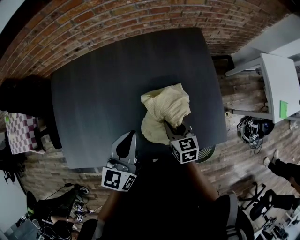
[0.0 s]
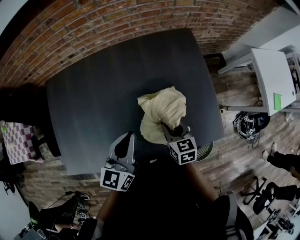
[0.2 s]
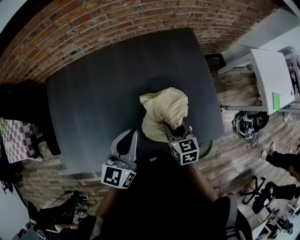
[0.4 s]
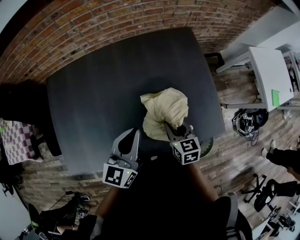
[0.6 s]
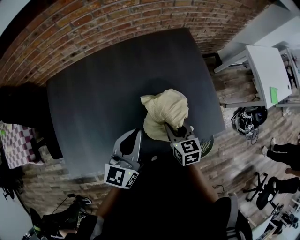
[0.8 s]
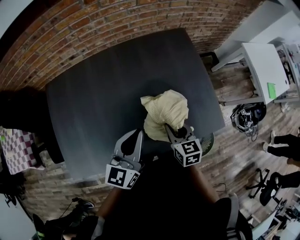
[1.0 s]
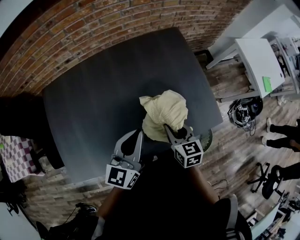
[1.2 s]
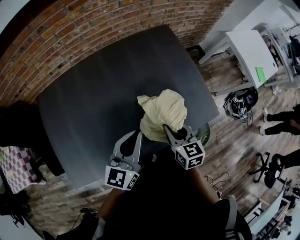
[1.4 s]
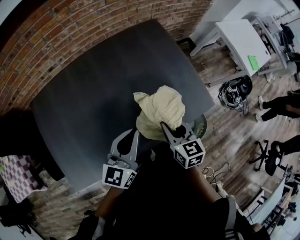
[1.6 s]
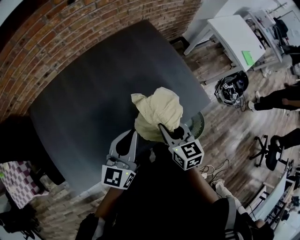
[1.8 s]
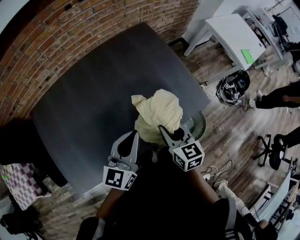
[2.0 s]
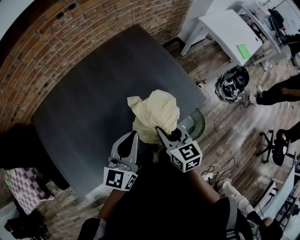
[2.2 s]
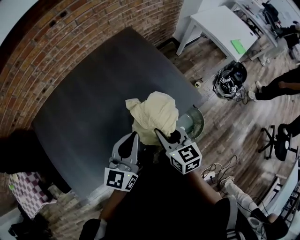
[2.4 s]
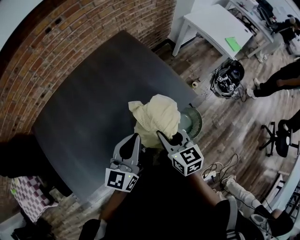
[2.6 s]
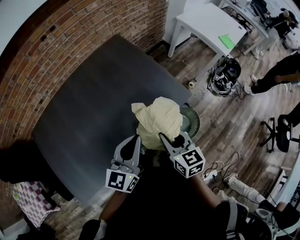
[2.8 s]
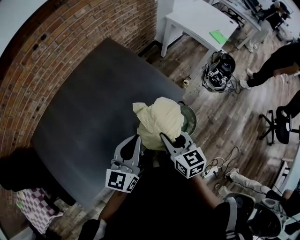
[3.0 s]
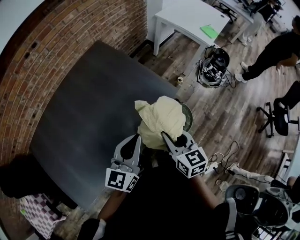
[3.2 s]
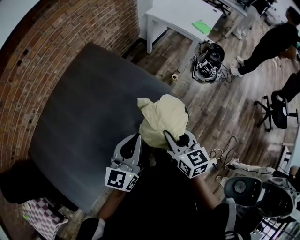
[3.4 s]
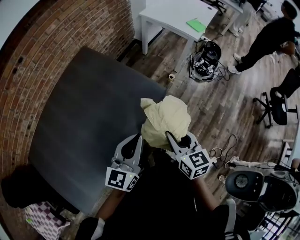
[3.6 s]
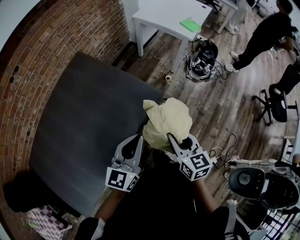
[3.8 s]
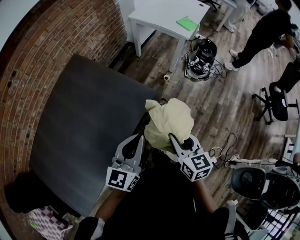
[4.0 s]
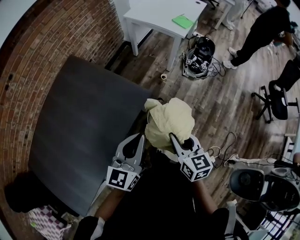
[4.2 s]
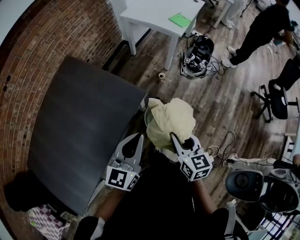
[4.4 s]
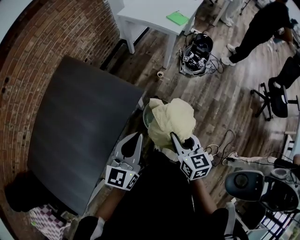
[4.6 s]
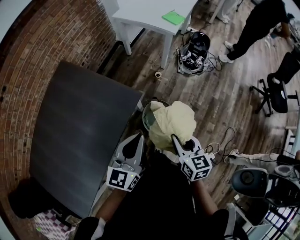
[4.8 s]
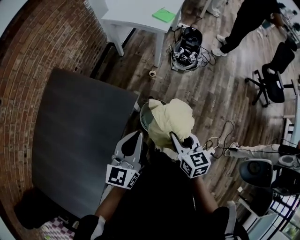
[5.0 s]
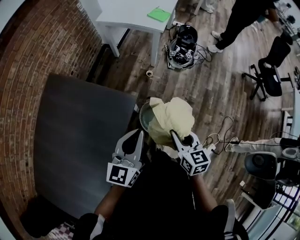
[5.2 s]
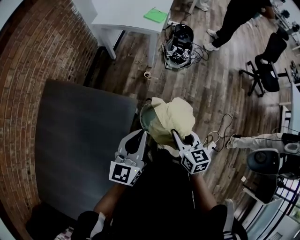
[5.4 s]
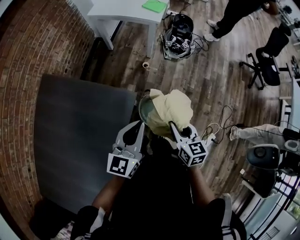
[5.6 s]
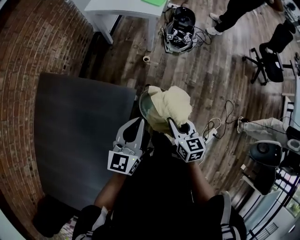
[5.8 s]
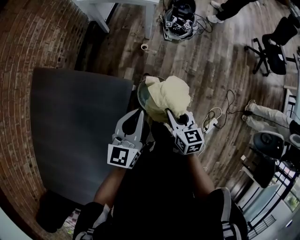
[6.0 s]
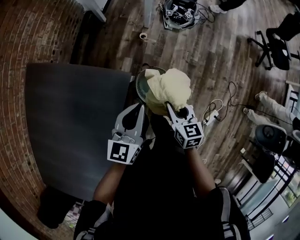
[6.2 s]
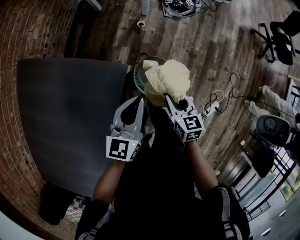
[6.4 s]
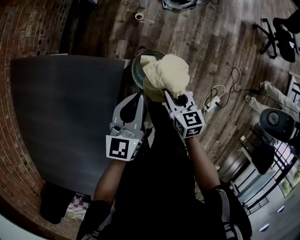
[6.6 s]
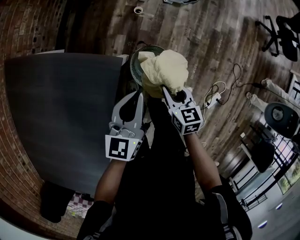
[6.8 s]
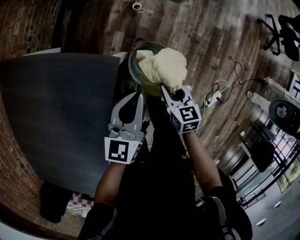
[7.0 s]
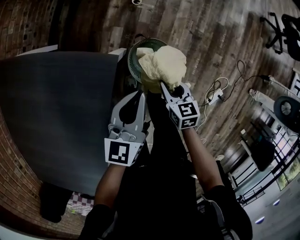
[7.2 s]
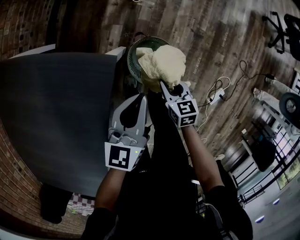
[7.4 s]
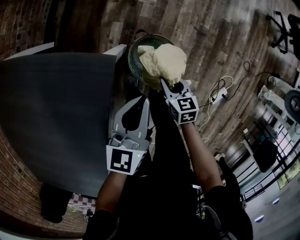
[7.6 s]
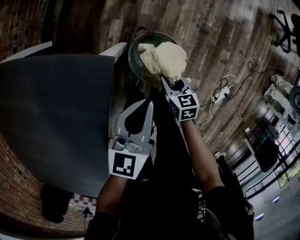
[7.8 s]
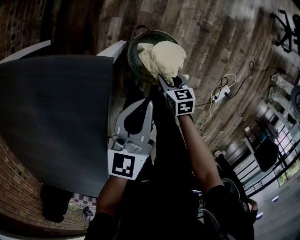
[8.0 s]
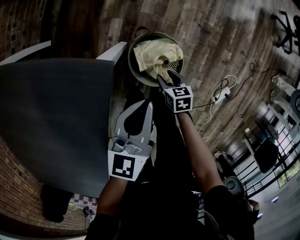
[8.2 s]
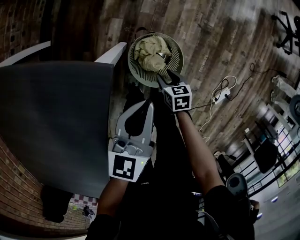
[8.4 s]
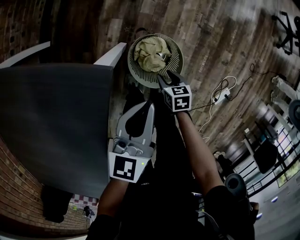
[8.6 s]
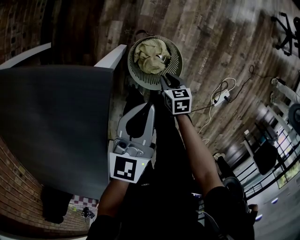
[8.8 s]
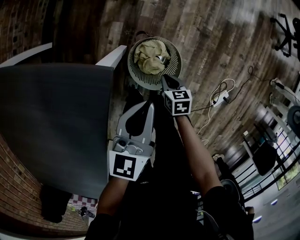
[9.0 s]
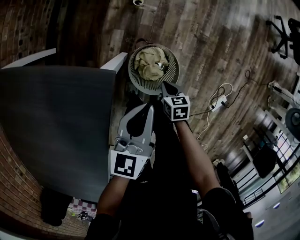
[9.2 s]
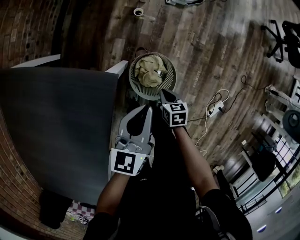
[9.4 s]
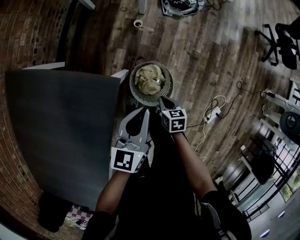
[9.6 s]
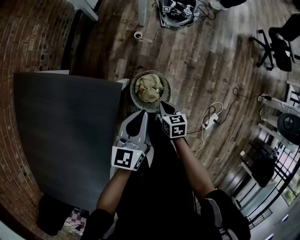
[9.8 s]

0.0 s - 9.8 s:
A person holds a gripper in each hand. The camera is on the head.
0.0 s - 1.4 s: The right gripper travels backward and upward by approximately 10 cm. The left gripper travels backward by about 5 cm, and changes its angle by some 20 degrees.
1.4 s - 2.8 s: The left gripper heads to the right, covering about 15 cm, while the right gripper goes roughly 15 cm to the right and backward.
2.8 s - 4.2 s: Both grippers move to the right, some 25 cm. The right gripper changes its angle by approximately 20 degrees.
4.2 s - 5.6 s: The left gripper moves forward, approximately 10 cm. The right gripper moves forward and downward, some 10 cm.
5.6 s - 7.0 s: Both grippers travel together downward, some 20 cm.
7.0 s - 8.4 s: The left gripper heads downward, covering some 10 cm; the right gripper shifts some 25 cm downward.
8.4 s - 9.8 s: The left gripper heads upward, covering about 10 cm; the right gripper goes about 20 cm upward, and closes.

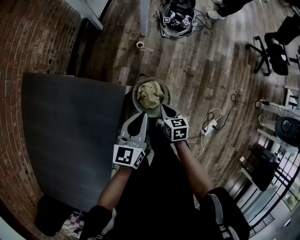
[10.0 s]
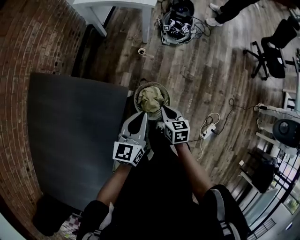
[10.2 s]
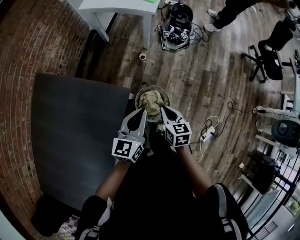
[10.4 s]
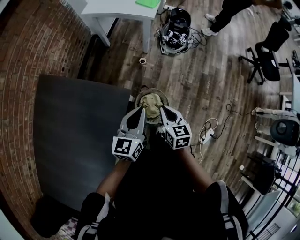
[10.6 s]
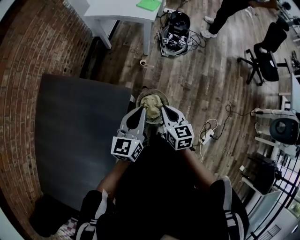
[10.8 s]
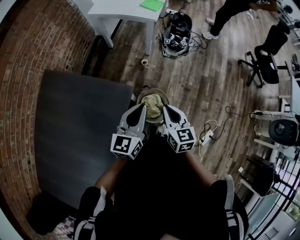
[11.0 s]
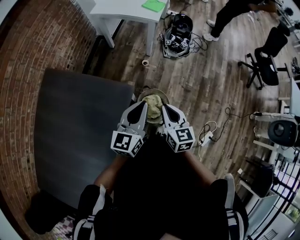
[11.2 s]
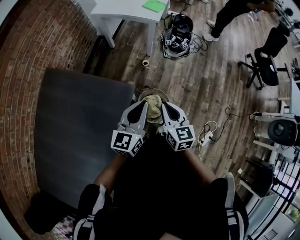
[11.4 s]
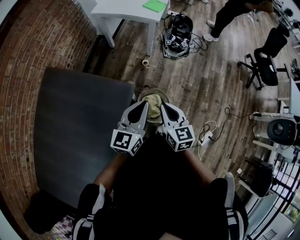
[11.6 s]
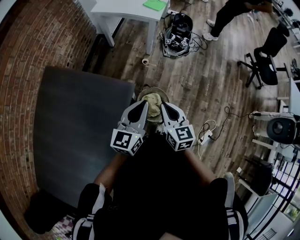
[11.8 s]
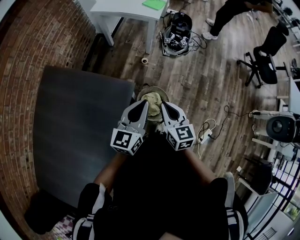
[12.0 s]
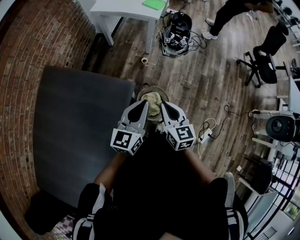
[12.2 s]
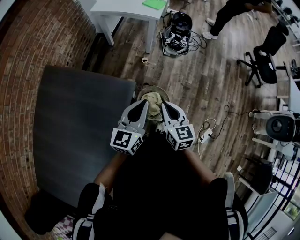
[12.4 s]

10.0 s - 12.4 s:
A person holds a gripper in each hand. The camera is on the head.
10.0 s - 11.2 s: The left gripper is displaced upward by approximately 15 cm; the right gripper is displaced upward by roughly 25 cm, and turns by some 30 degrees.
11.2 s - 12.4 s: There are only small adjustments of the grippers.

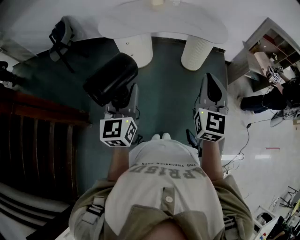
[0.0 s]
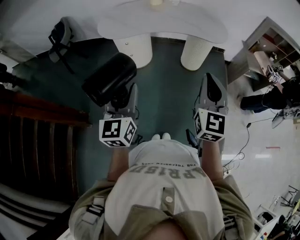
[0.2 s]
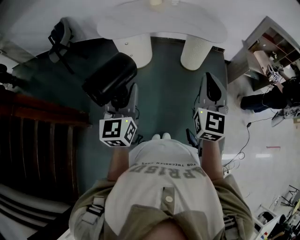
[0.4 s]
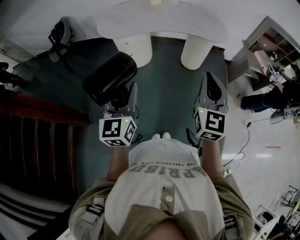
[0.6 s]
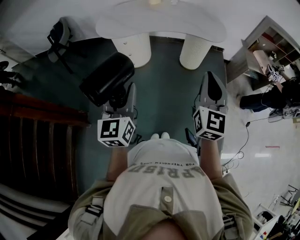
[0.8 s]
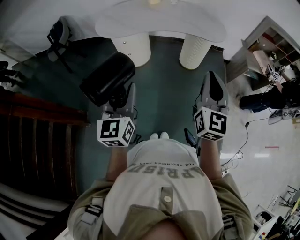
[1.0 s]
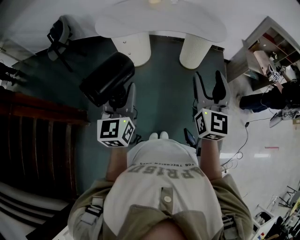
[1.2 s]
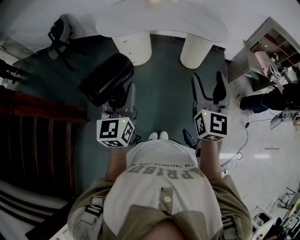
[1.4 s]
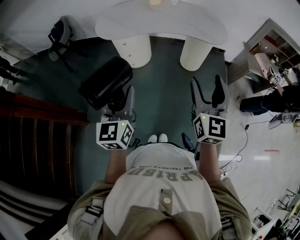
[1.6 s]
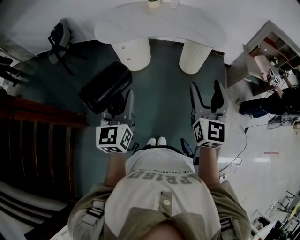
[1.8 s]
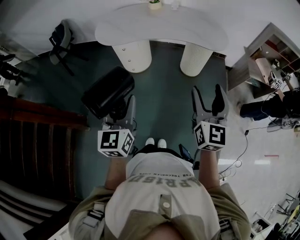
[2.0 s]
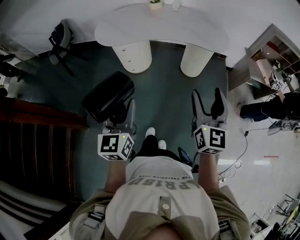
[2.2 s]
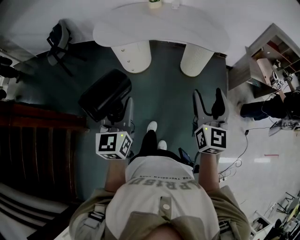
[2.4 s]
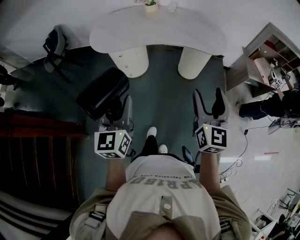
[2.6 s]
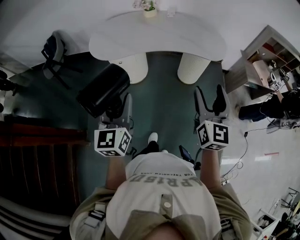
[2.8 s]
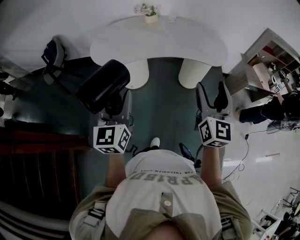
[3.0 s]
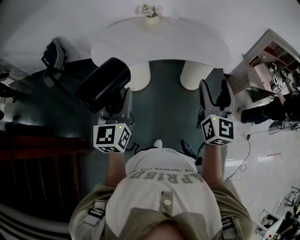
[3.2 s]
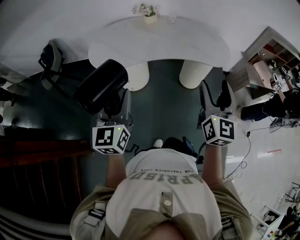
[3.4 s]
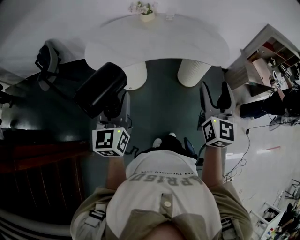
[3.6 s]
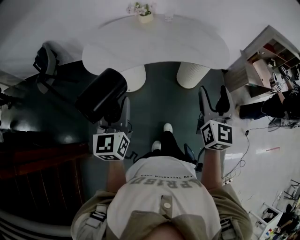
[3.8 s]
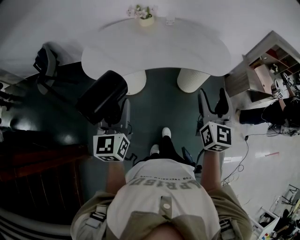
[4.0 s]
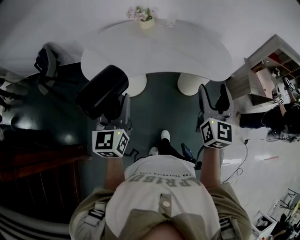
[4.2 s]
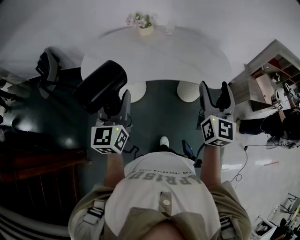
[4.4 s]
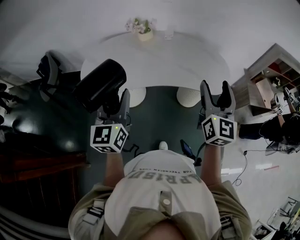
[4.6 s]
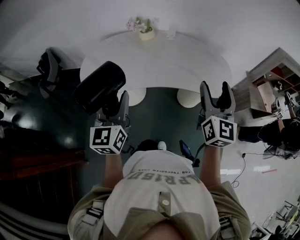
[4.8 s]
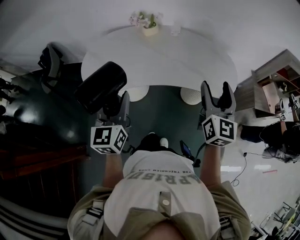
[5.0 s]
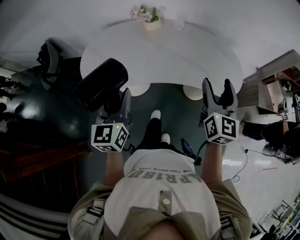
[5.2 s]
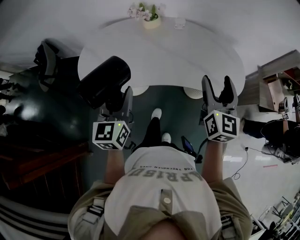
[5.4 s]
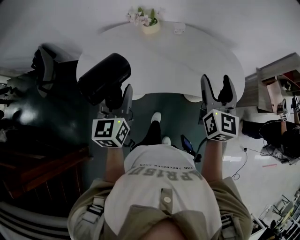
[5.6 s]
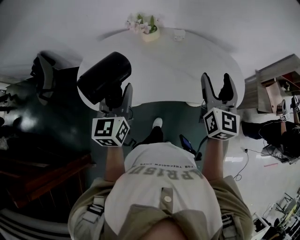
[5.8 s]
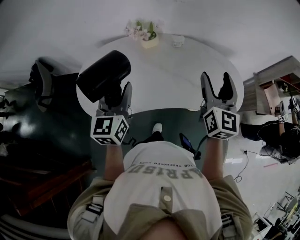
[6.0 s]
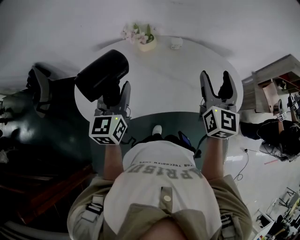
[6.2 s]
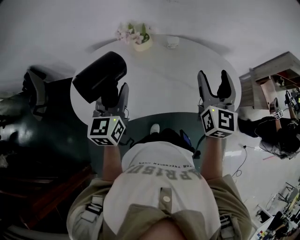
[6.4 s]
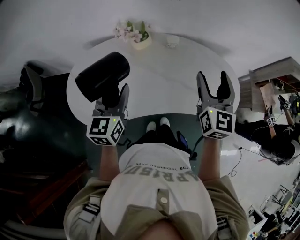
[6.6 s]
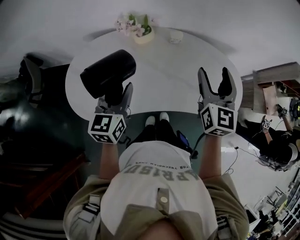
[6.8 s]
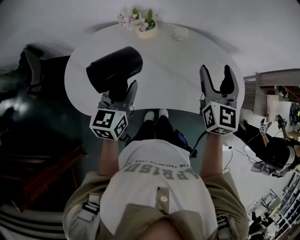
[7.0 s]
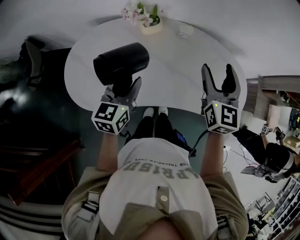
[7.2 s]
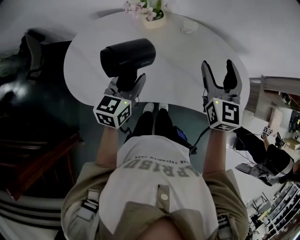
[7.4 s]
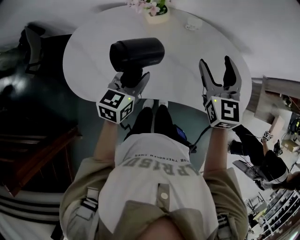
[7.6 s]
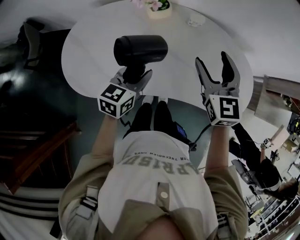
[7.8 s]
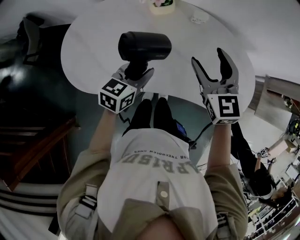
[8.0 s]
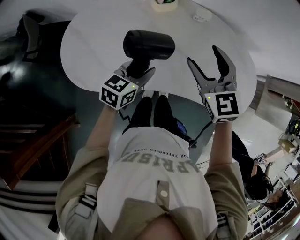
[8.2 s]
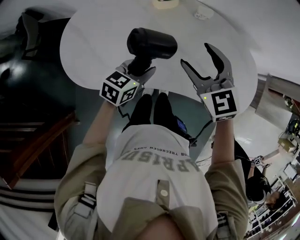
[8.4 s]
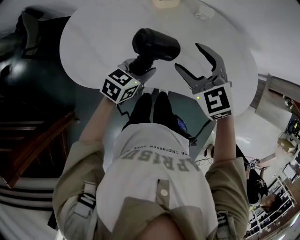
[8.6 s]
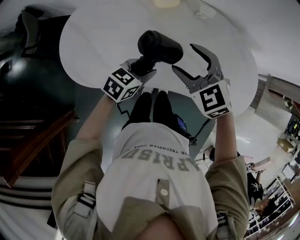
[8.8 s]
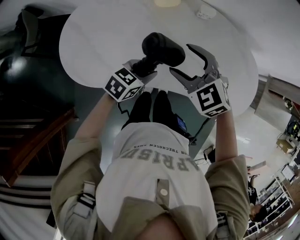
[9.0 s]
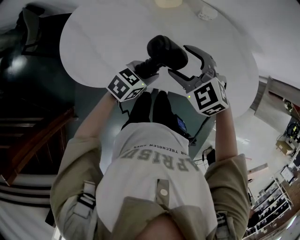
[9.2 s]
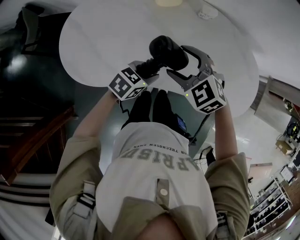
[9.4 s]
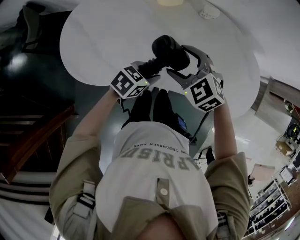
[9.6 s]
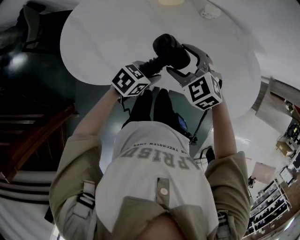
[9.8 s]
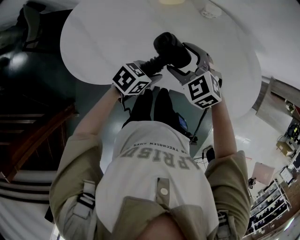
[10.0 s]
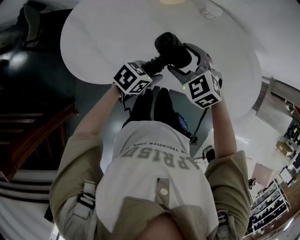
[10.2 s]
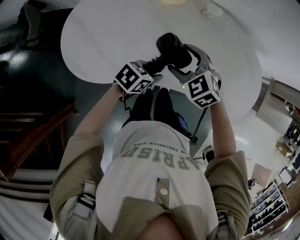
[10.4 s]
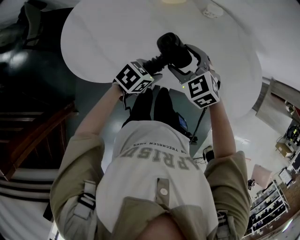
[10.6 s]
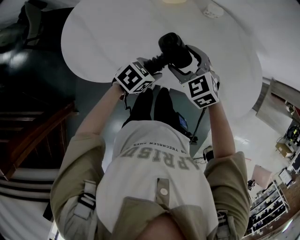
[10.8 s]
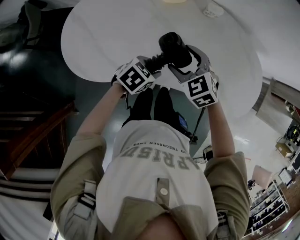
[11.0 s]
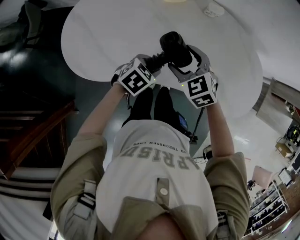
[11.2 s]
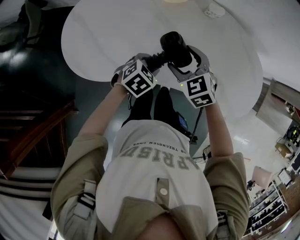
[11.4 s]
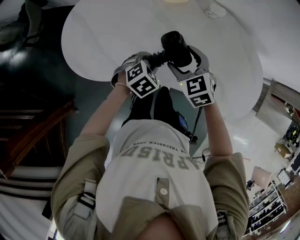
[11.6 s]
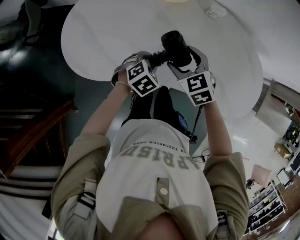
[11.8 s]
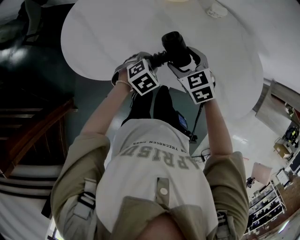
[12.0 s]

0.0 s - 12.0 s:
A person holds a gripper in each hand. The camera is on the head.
0.0 s - 1.6 s: The right gripper opens its fingers.
1.6 s - 3.0 s: The two grippers go about 15 cm forward.
3.0 s - 4.4 s: Both grippers travel together forward, about 20 cm.
4.4 s - 6.0 s: The two grippers go some 25 cm forward.
6.0 s - 7.6 s: The left gripper shifts some 15 cm downward and forward, and swivels about 30 degrees; the right gripper goes roughly 15 cm forward, downward and to the left, and changes its angle by approximately 30 degrees.
7.6 s - 9.0 s: The right gripper is displaced to the left, downward and backward by roughly 15 cm, and turns by roughly 50 degrees. Meanwhile the left gripper goes about 10 cm downward, and changes its angle by about 30 degrees.
9.0 s - 10.4 s: The right gripper is displaced downward by roughly 5 cm.
10.4 s - 12.0 s: The left gripper travels downward by about 5 cm, and swivels approximately 30 degrees.
